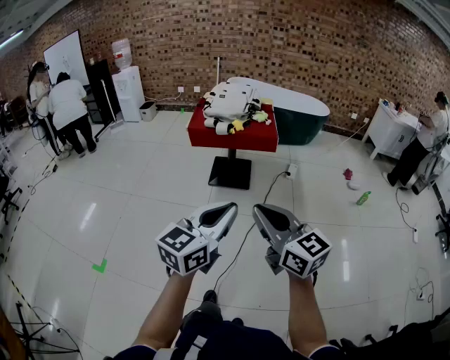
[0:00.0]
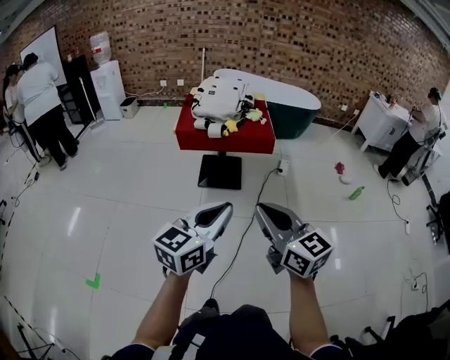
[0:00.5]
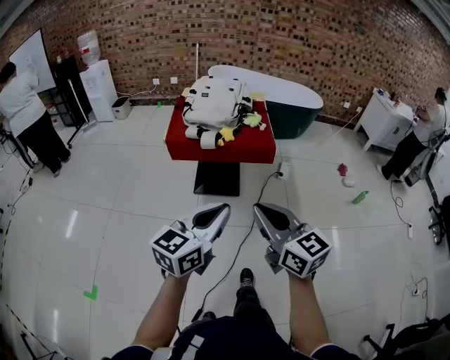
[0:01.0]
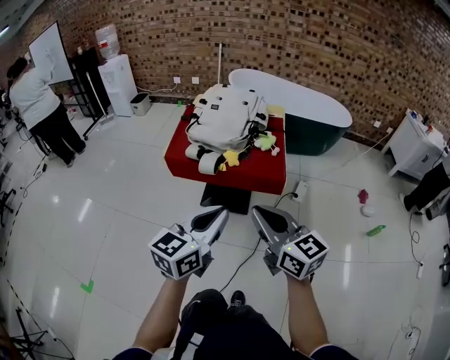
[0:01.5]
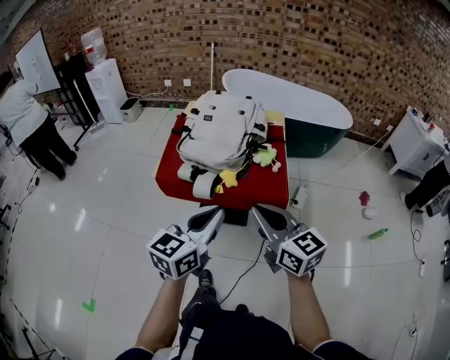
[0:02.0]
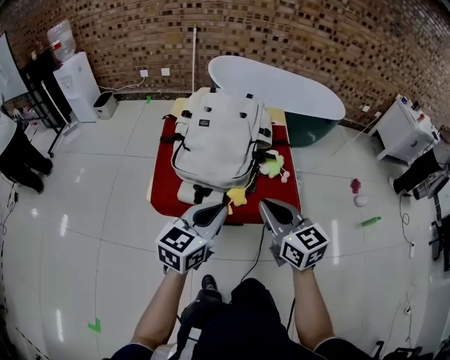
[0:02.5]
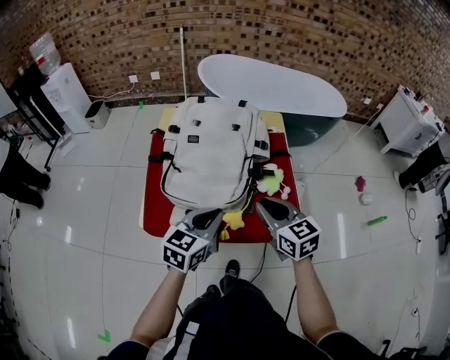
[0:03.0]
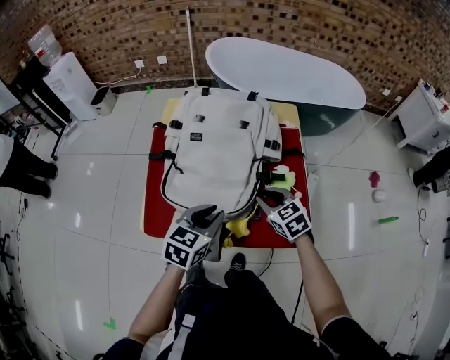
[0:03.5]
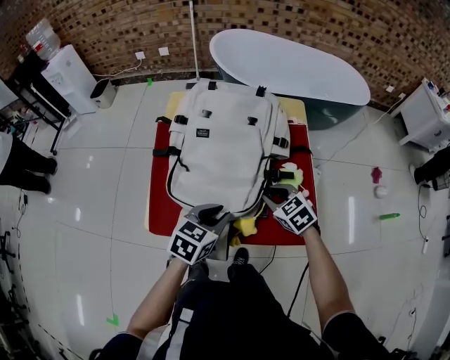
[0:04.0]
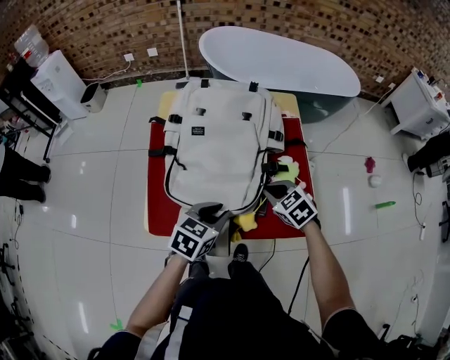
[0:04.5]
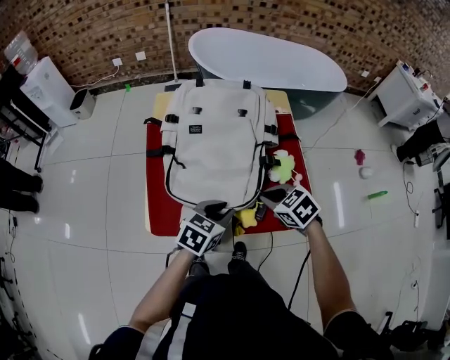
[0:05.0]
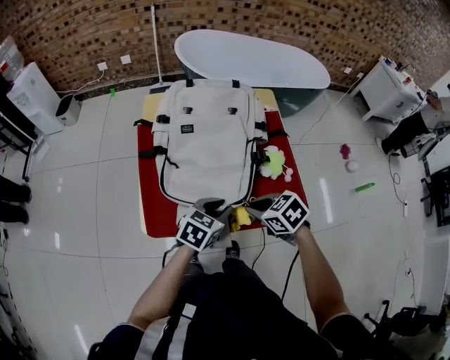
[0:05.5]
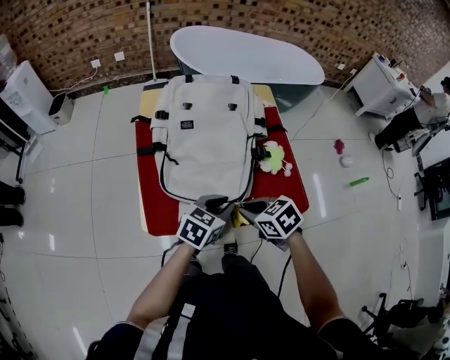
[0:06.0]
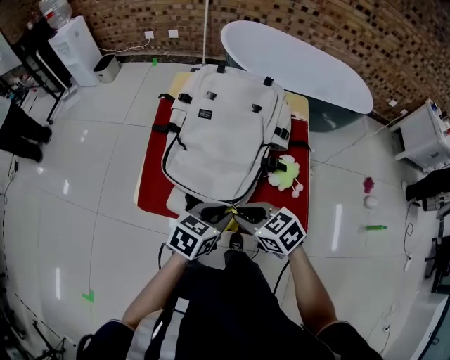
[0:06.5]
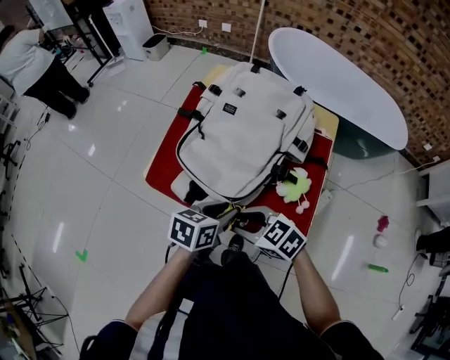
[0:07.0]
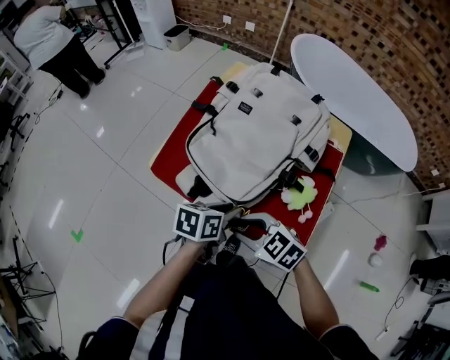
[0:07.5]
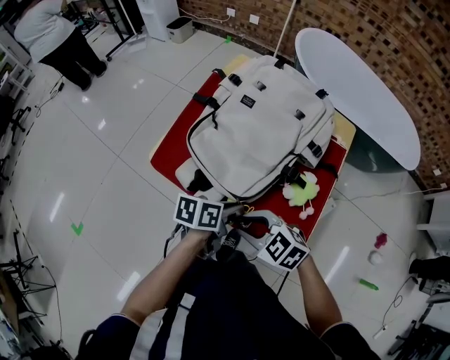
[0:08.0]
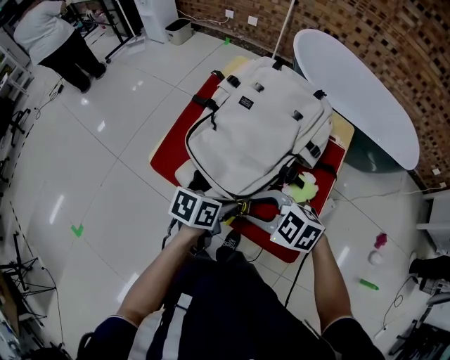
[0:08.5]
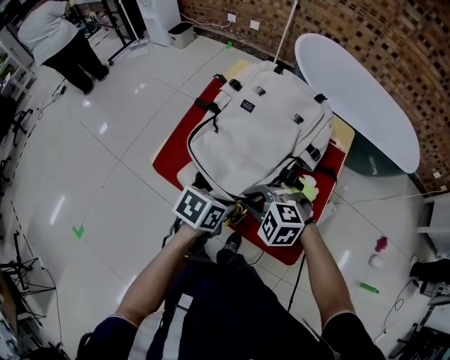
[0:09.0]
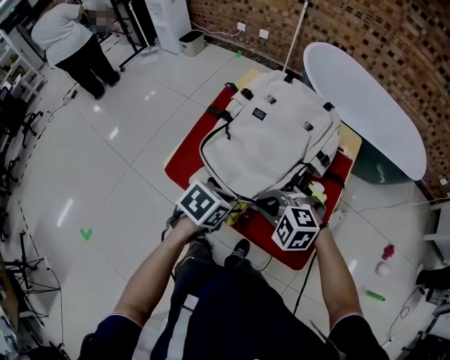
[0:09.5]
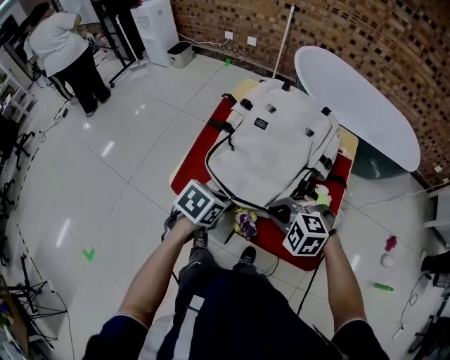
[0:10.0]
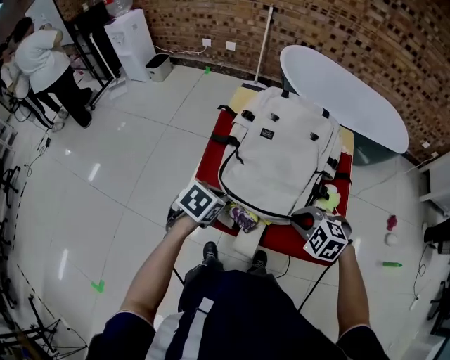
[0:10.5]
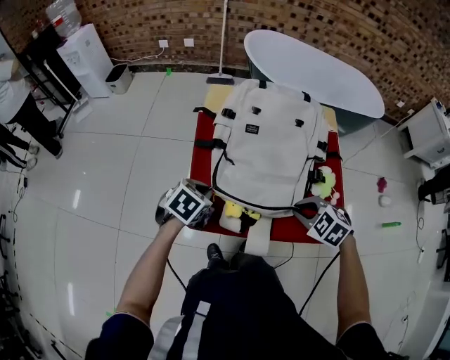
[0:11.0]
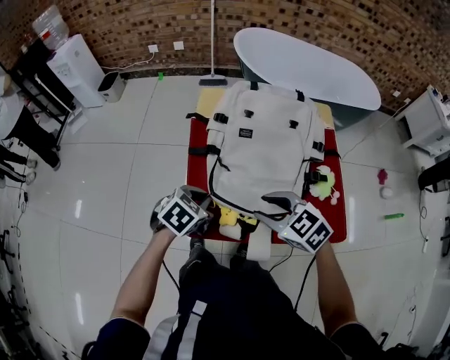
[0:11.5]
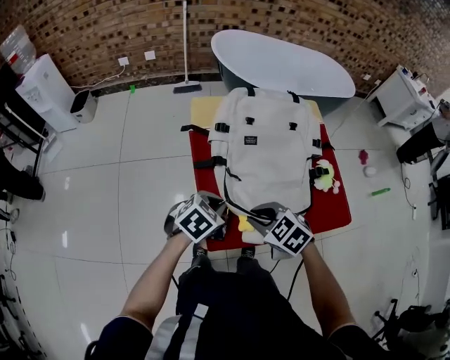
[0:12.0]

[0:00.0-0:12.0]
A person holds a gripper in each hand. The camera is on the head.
0:00.0 to 0:02.0: The pair of grippers is taken forward, some 60 cm.
0:02.0 to 0:04.0: Both grippers move forward and downward, about 35 cm. The left gripper angles its fingers downward, by about 30 degrees, and opens up; the right gripper tilts its fingers some 40 degrees downward.
0:04.0 to 0:06.0: The right gripper is displaced backward and to the left by some 15 cm, and swivels roughly 20 degrees.
0:06.0 to 0:08.0: The right gripper moves approximately 5 cm, and rotates around the line of its fingers by roughly 50 degrees, counterclockwise from behind, while the left gripper moves roughly 5 cm, and rotates around the line of its fingers by approximately 60 degrees, counterclockwise from behind.
0:08.0 to 0:10.0: The left gripper moves approximately 10 cm, and changes its angle by some 40 degrees, while the right gripper moves approximately 10 cm, and changes its angle by approximately 30 degrees.
0:10.0 to 0:12.0: The left gripper shifts by approximately 15 cm, and rolls clockwise, seen from behind, by approximately 40 degrees, while the right gripper shifts by approximately 20 cm, twists about 60 degrees clockwise, seen from behind, and opens, then closes once more.

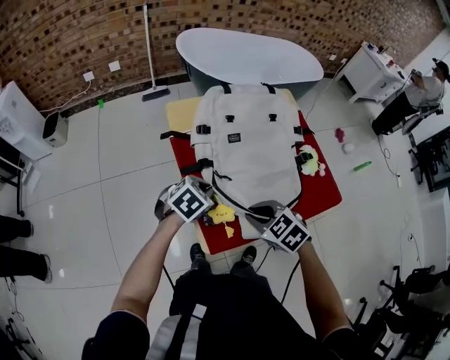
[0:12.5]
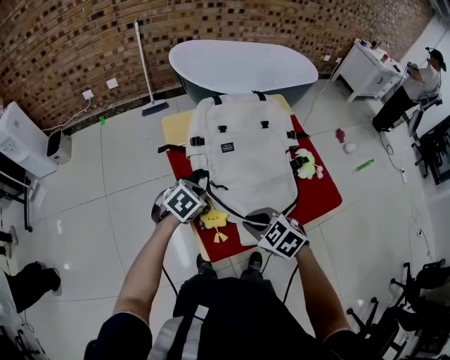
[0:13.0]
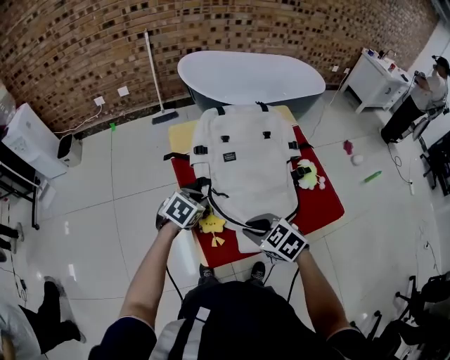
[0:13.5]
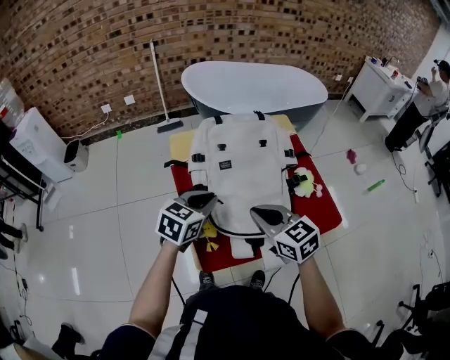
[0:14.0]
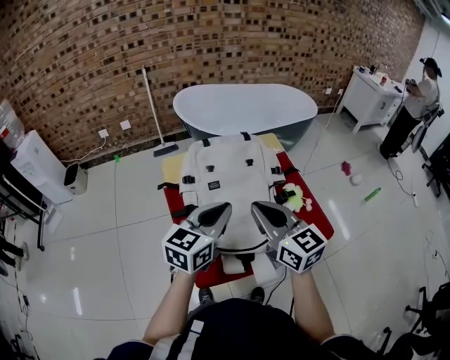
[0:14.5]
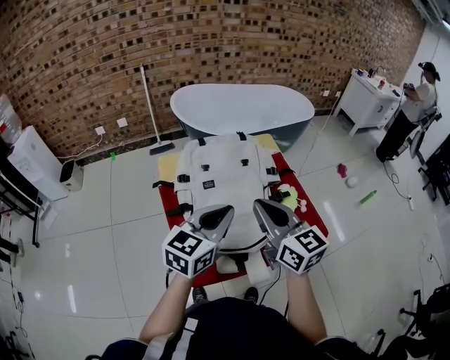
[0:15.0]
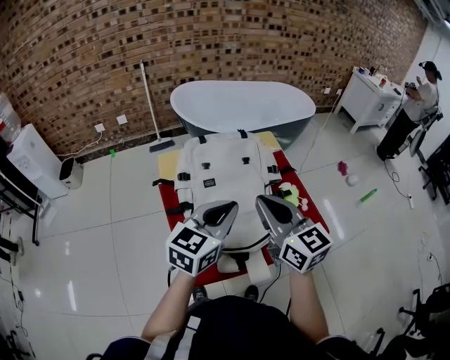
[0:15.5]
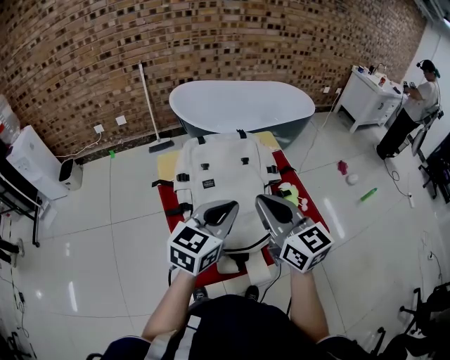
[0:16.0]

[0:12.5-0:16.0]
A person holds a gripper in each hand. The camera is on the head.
0:12.5 to 0:14.5: The right gripper shifts about 20 cm upward, and tilts its fingers roughly 50 degrees upward. Meanwhile the left gripper is displaced upward and to the right by about 25 cm, and points its fingers about 40 degrees further upward.
0:14.5 to 0:16.0: There are only small adjustments of the grippers.

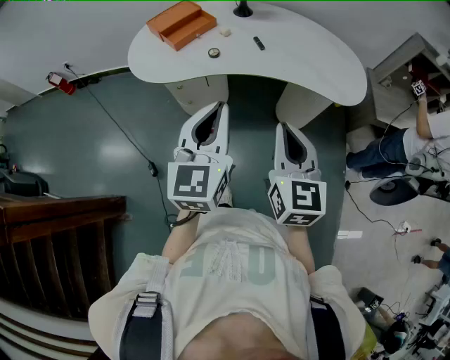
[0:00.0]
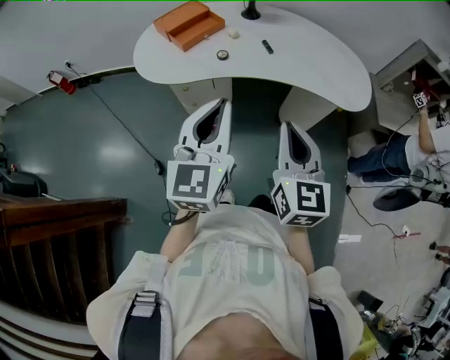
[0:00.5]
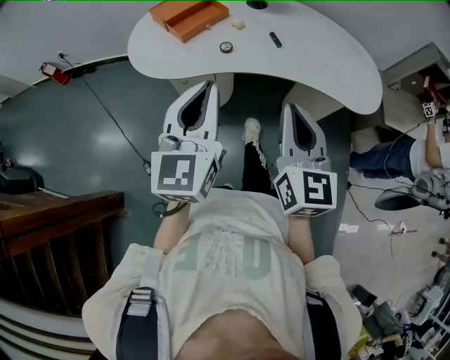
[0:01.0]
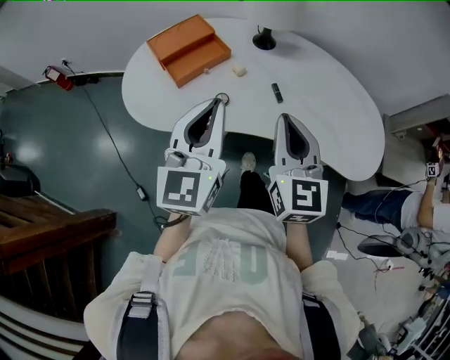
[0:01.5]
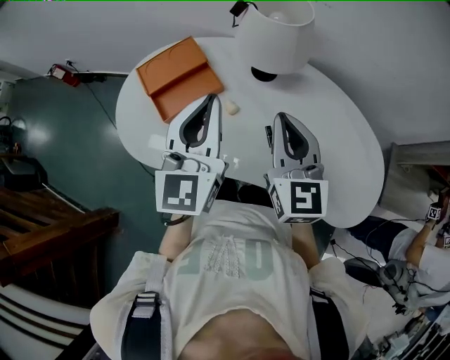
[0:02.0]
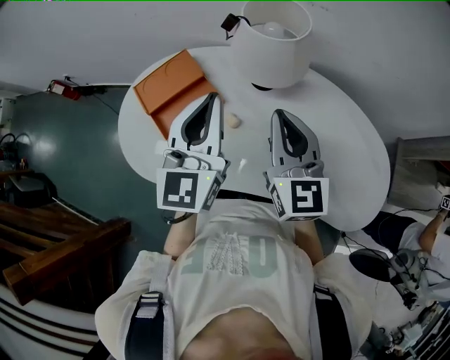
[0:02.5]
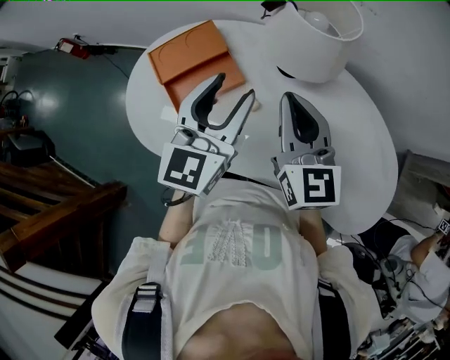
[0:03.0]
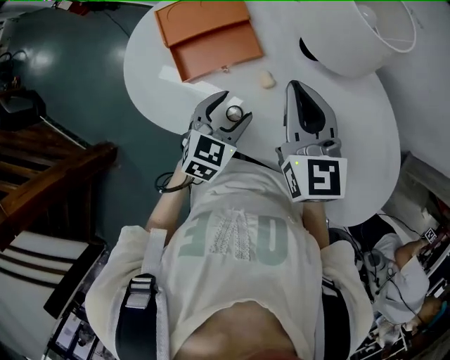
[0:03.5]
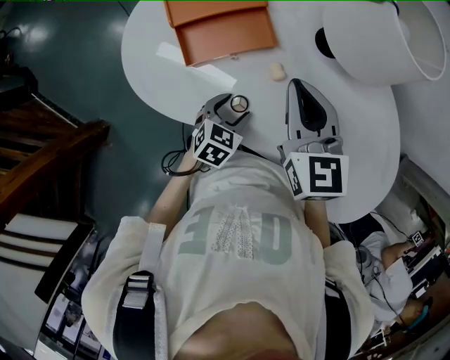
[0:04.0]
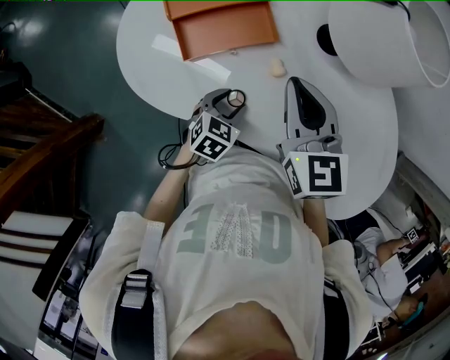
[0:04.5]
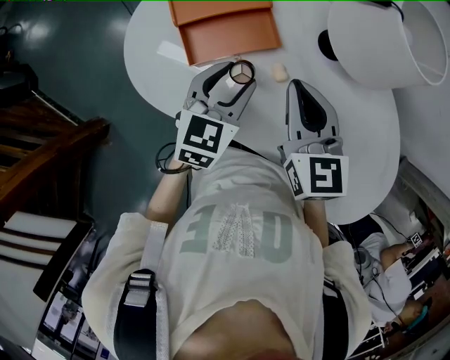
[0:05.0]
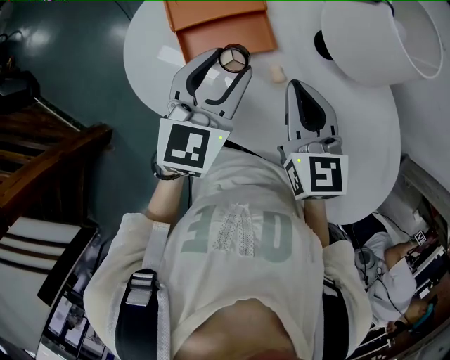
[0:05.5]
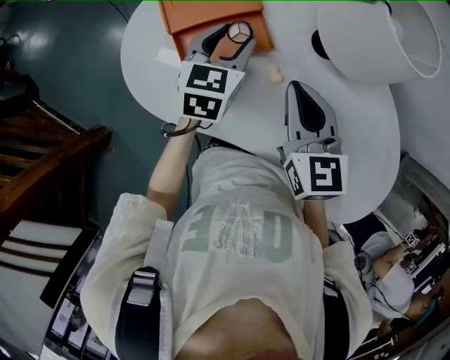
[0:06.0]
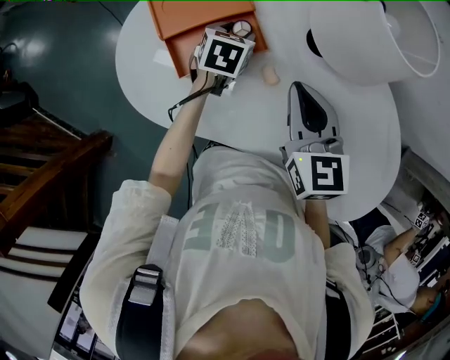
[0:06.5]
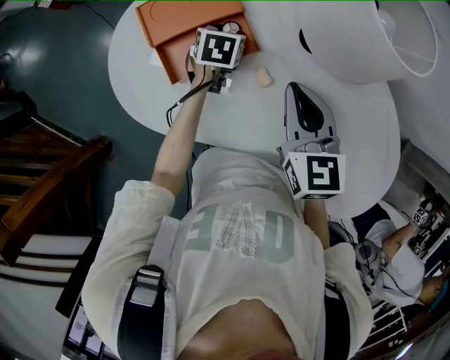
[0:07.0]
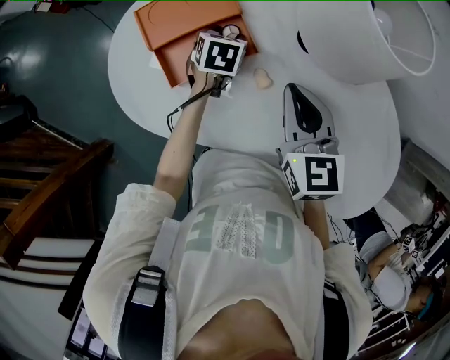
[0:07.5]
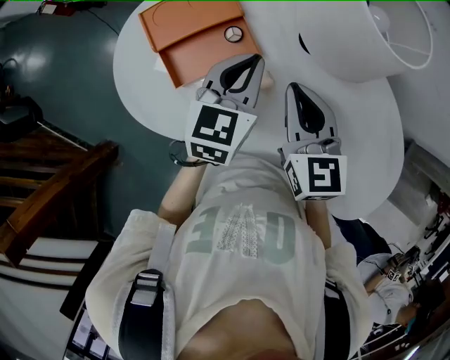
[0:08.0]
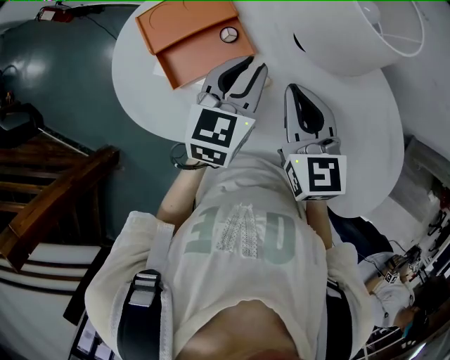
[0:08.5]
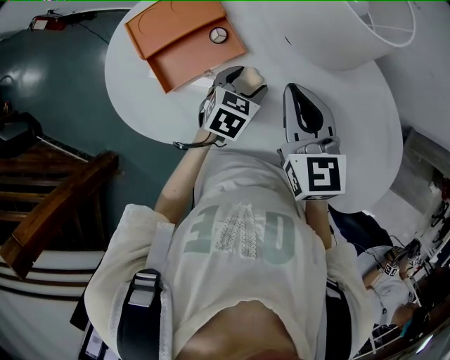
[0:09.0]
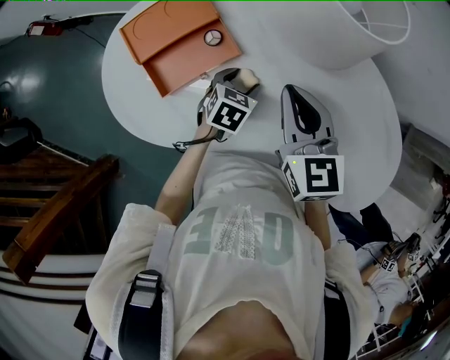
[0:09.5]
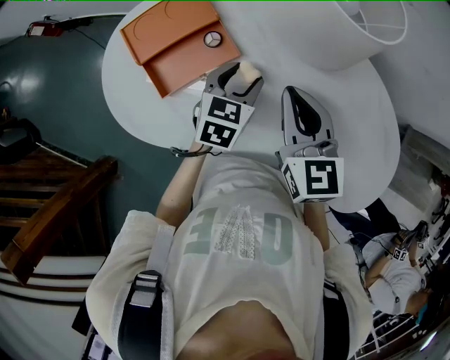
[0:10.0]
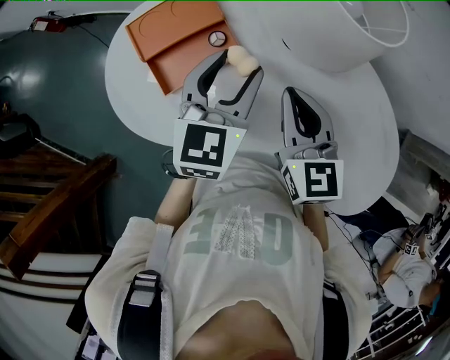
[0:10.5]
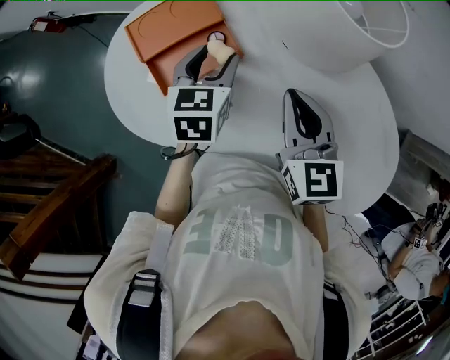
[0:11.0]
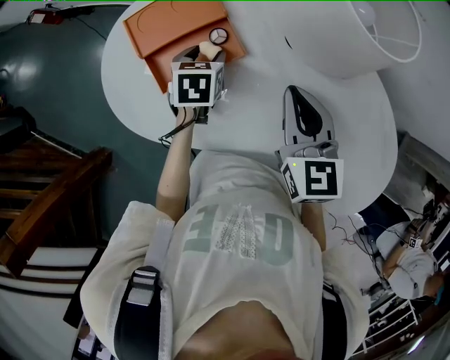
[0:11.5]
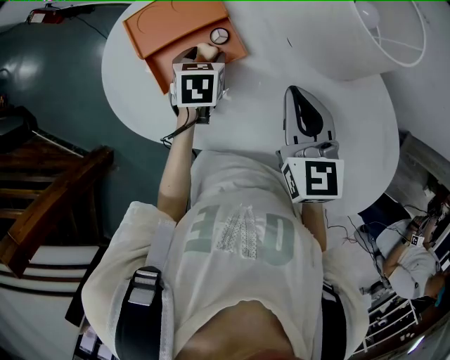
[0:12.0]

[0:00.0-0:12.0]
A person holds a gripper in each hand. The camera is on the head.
0:00.0 to 0:02.0: Both grippers are carried forward, roughly 40 cm.
0:02.0 to 0:04.0: The left gripper moves downward, some 35 cm, tips its fingers downward by approximately 50 degrees, and opens. Meanwhile the right gripper is displaced to the left, downward and forward by roughly 15 cm, and changes its angle by some 30 degrees.
0:04.0 to 0:06.0: The left gripper is displaced forward and upward by about 25 cm, and changes its angle by approximately 20 degrees.
0:06.0 to 0:08.0: The left gripper travels to the right by some 5 cm, reaches about 15 cm downward, then returns, and closes its fingers.
0:08.0 to 0:10.0: The left gripper heads downward, covering about 10 cm, and opens its fingers.
0:10.0 to 0:12.0: The left gripper travels to the left and forward by roughly 15 cm, goes upward and returns, approximately 15 cm each way, and rotates approximately 30 degrees.
